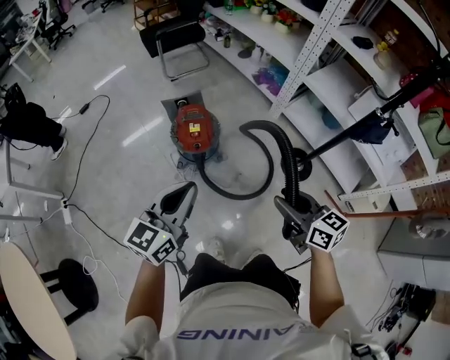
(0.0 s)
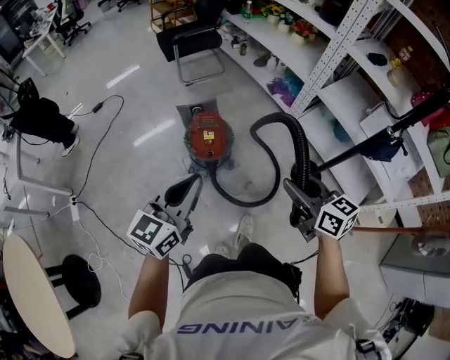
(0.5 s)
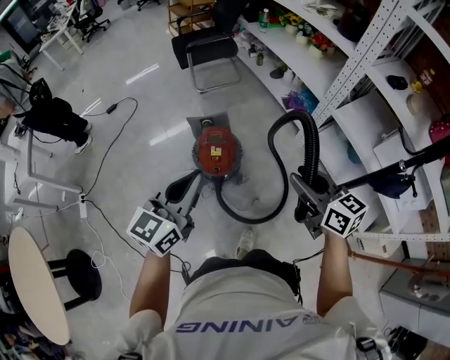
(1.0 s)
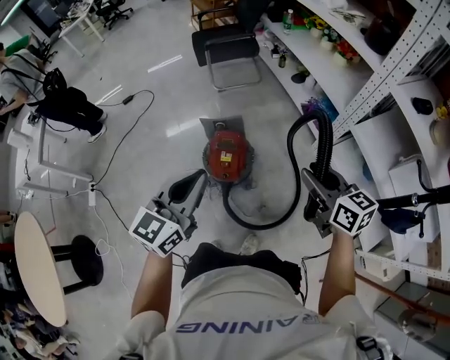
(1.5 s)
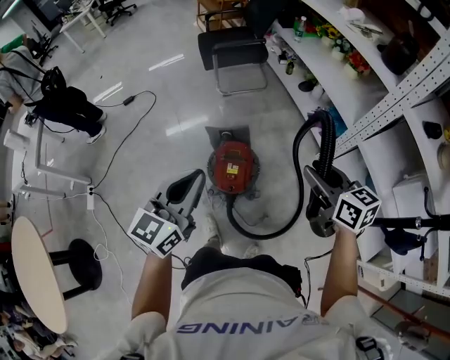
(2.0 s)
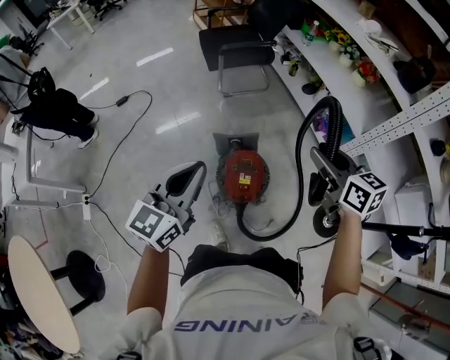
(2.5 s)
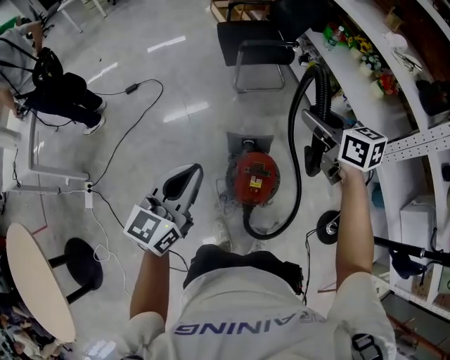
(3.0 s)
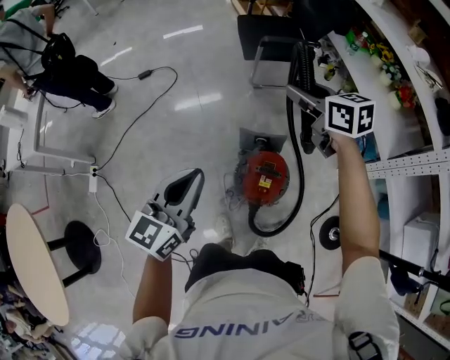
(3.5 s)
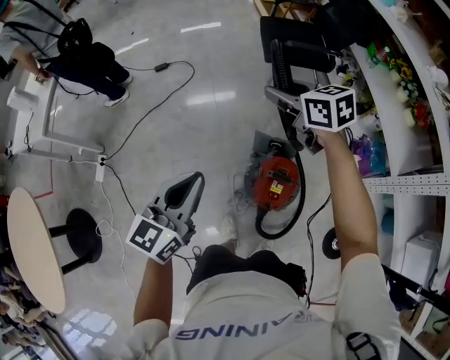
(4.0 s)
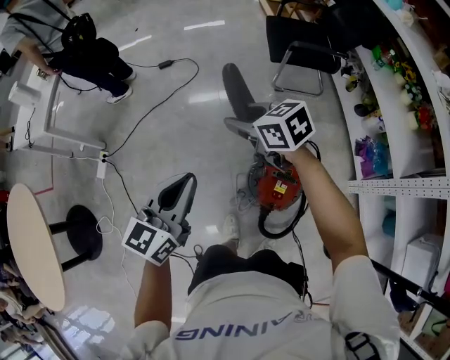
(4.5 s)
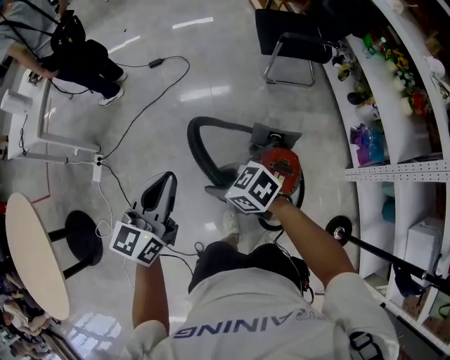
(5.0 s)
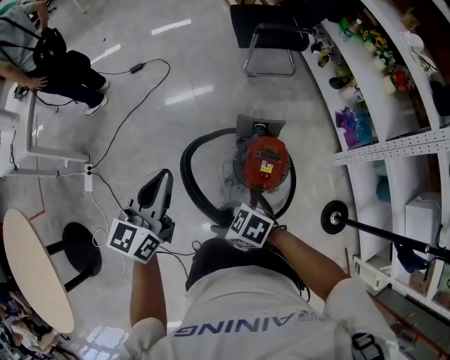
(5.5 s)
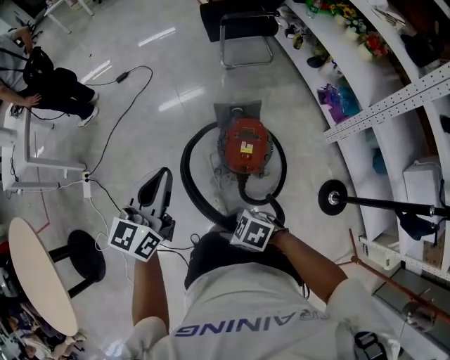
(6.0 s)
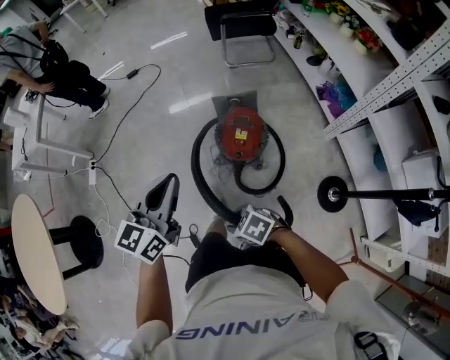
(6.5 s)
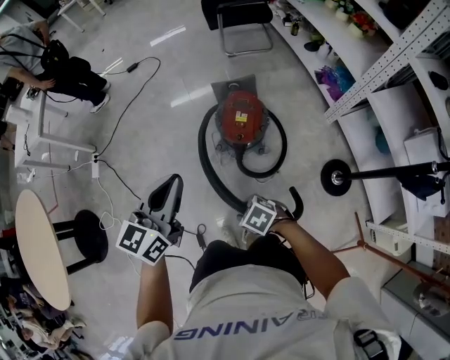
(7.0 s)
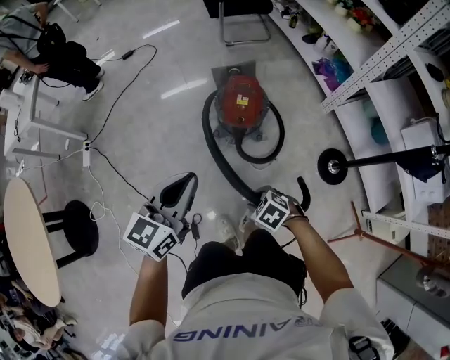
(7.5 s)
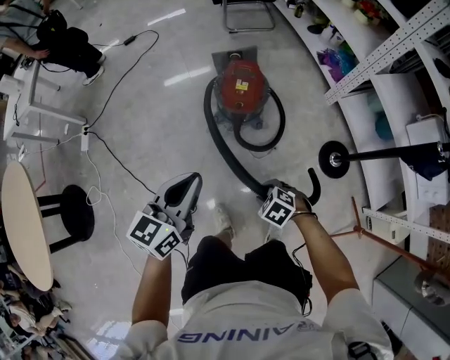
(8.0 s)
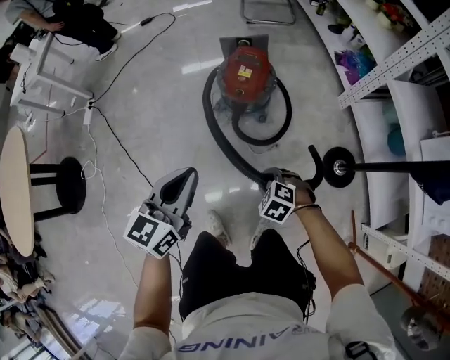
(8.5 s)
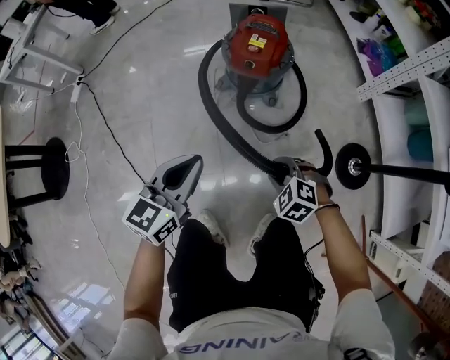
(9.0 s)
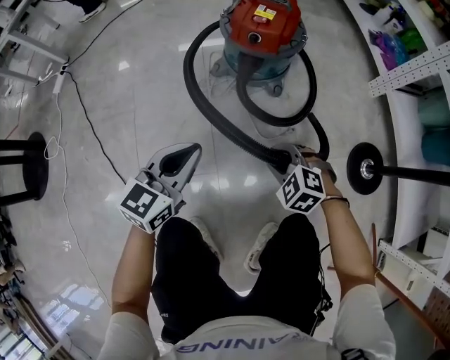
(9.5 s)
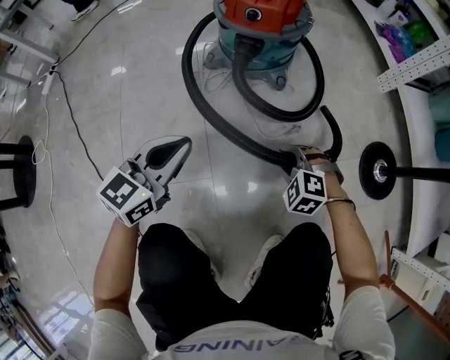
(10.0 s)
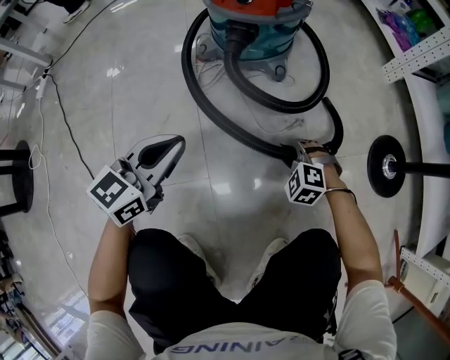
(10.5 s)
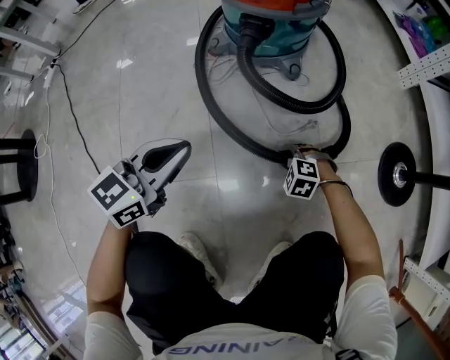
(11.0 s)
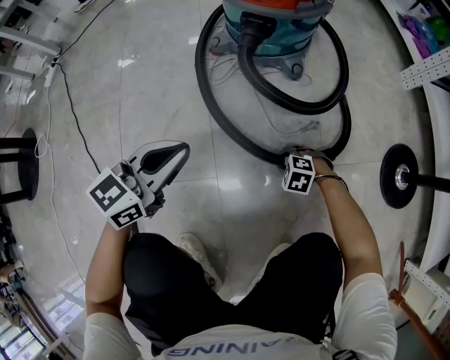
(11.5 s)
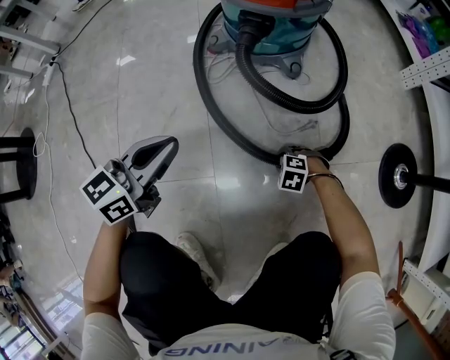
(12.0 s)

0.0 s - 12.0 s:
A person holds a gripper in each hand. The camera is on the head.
0.0 s - 2.0 s: Both grippers travel together forward, roughly 35 cm.
2.0 s - 4.0 s: The left gripper goes about 30 cm to the left and forward. Meanwhile the right gripper goes roughly 50 cm to the left and forward, and rotates about 30 degrees.
4.0 s - 6.0 s: The right gripper is displaced backward, to the left and downward by about 60 cm, and turns by about 40 degrees, while the left gripper goes about 15 cm backward.
6.0 s - 8.0 s: The right gripper travels backward and downward by some 30 cm, and changes its angle by some 20 degrees. Meanwhile the left gripper goes about 35 cm backward.
8.0 s - 10.0 s: Both grippers travel together downward, about 50 cm. The right gripper turns by about 40 degrees.
10.0 s - 12.0 s: The left gripper goes about 5 cm downward; the right gripper shifts some 25 cm downward, and changes its angle by about 20 degrees.

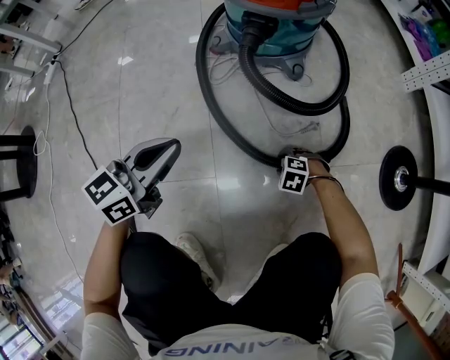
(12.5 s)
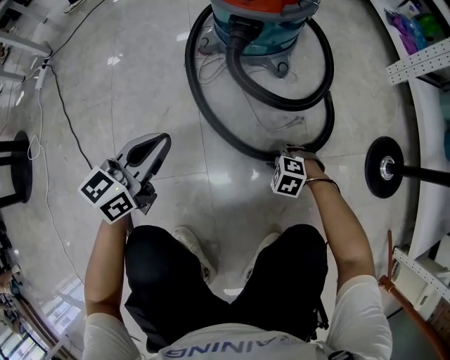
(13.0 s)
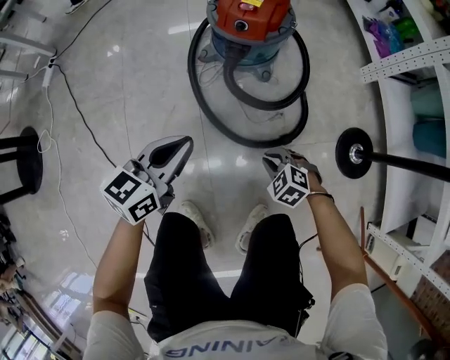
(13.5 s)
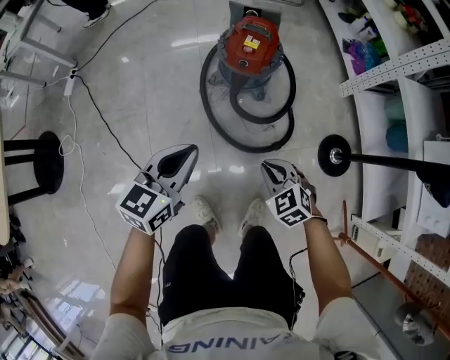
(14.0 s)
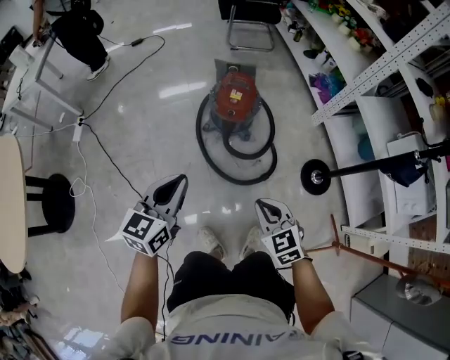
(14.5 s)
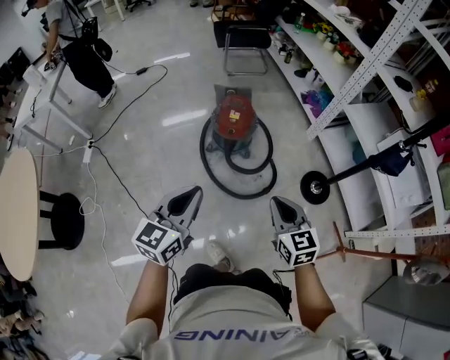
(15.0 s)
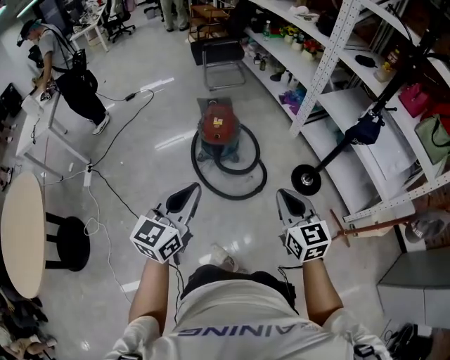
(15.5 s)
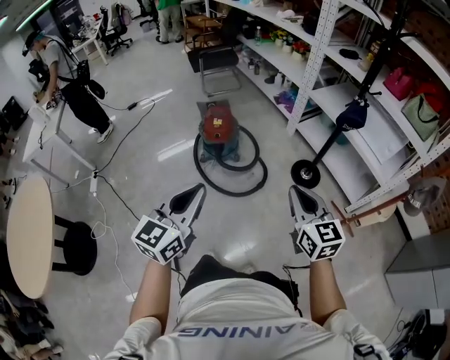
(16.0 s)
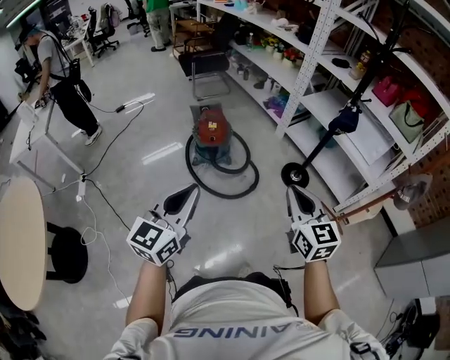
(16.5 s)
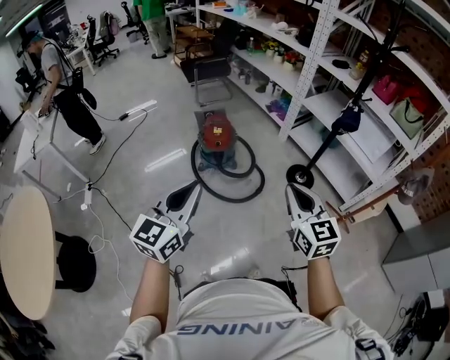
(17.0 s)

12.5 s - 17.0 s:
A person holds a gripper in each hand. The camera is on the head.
12.5 s - 14.5 s: Both grippers travel together upward, about 70 cm. The right gripper points its fingers roughly 40 degrees further upward, and closes up.
14.5 s - 17.0 s: The left gripper moves backward and upward, roughly 35 cm, and changes its angle by roughly 30 degrees. The right gripper heads upward and backward, covering about 40 cm, and swivels roughly 40 degrees.

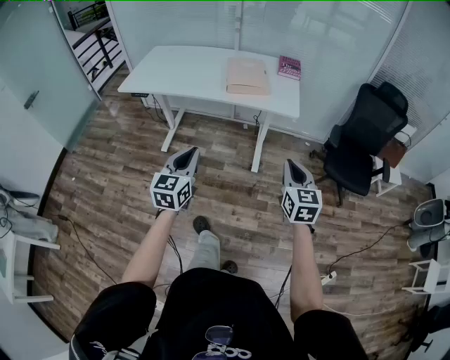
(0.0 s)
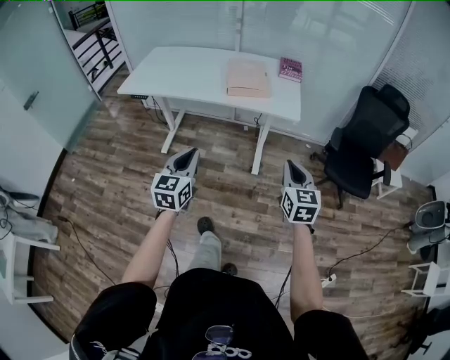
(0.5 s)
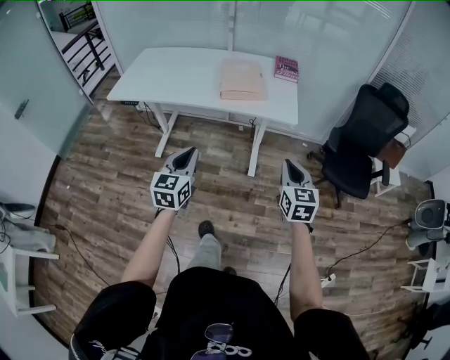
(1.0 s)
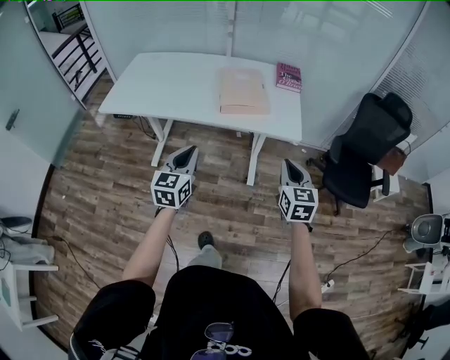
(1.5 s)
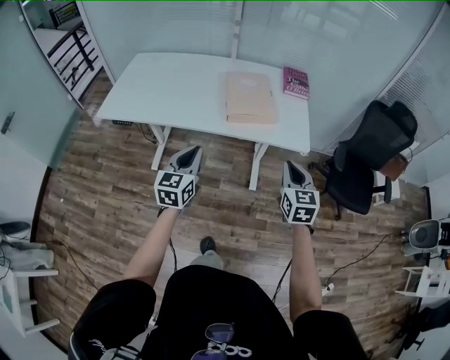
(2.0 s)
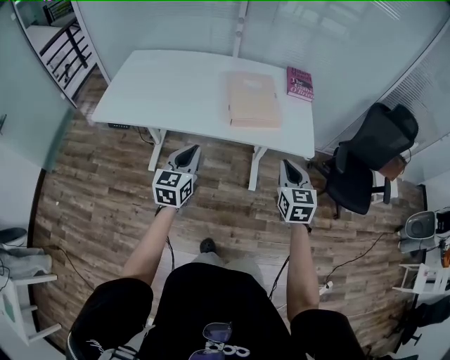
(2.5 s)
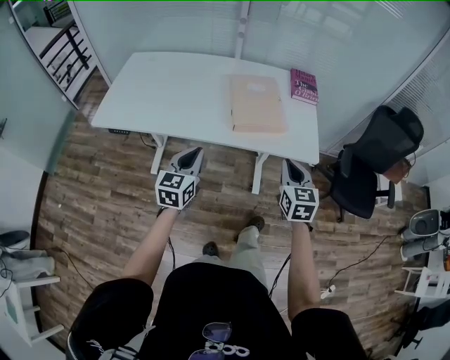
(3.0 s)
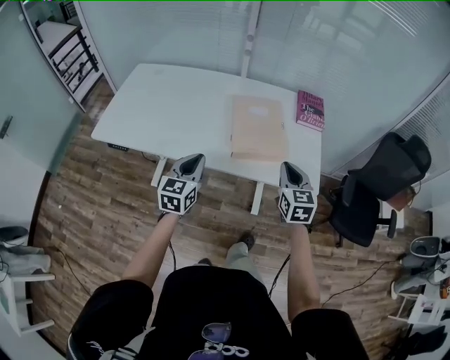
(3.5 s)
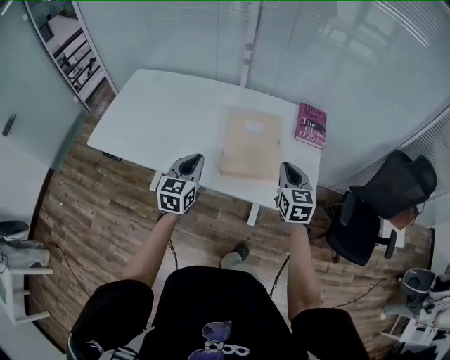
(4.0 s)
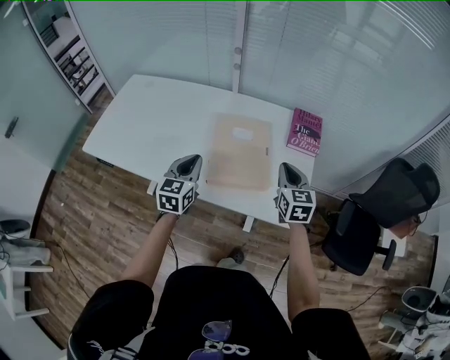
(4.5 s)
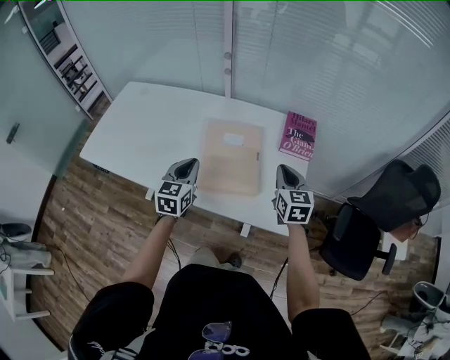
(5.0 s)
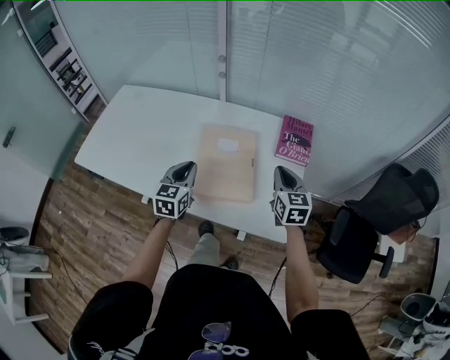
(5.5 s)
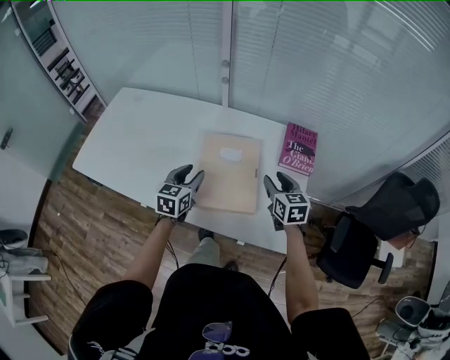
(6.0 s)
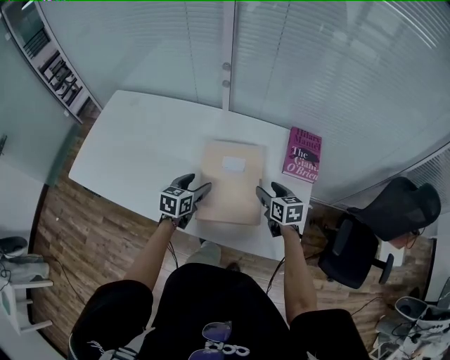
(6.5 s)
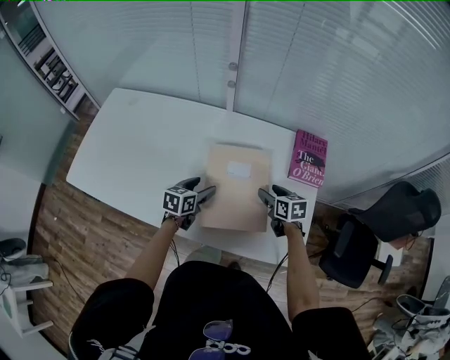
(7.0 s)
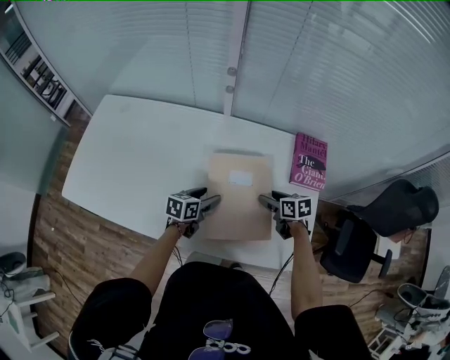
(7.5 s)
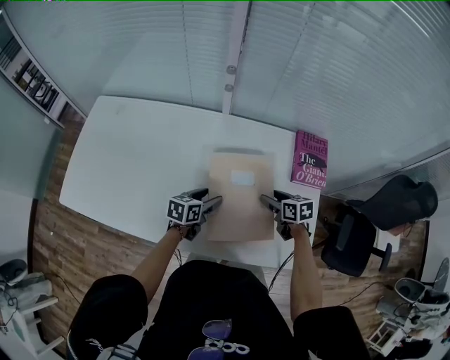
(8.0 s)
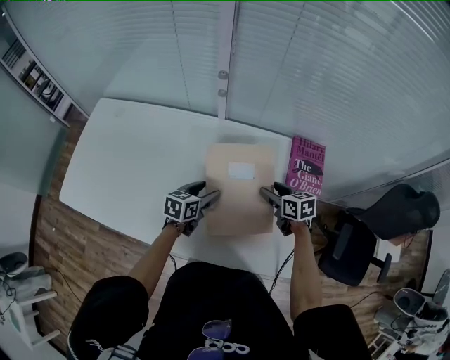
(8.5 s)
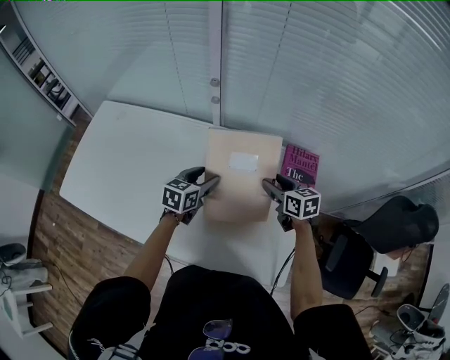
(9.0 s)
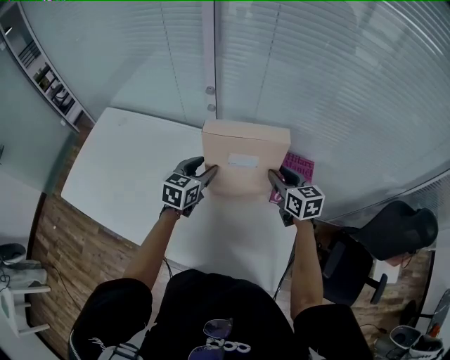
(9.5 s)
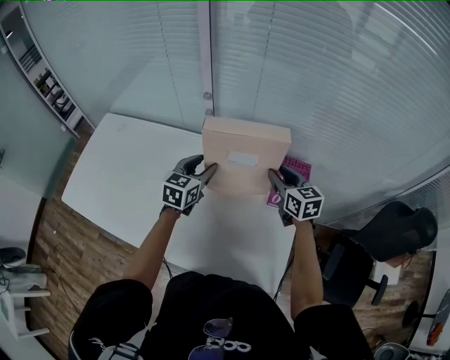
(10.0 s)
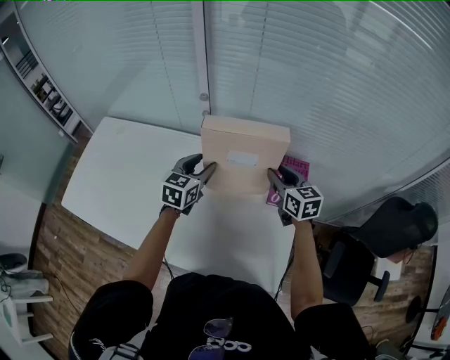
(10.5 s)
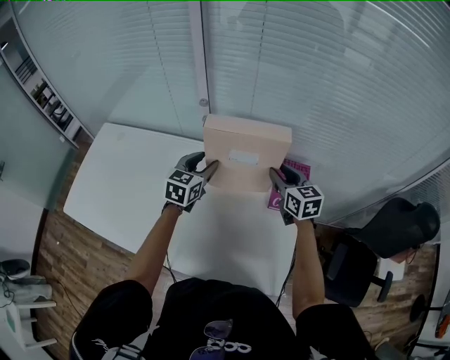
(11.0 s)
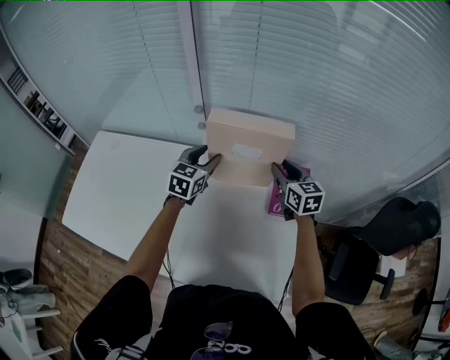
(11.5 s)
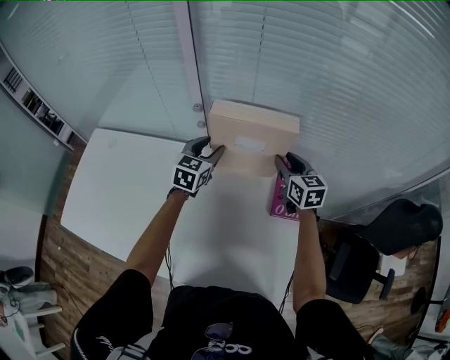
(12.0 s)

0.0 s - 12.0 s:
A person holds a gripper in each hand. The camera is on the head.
0.0 s - 2.0 s: Both grippers travel together forward, approximately 25 cm.
2.0 s - 4.0 s: Both grippers travel together forward, roughly 30 cm.
4.0 s - 6.0 s: Both grippers move forward, to the right and downward, approximately 15 cm. The left gripper opens its fingers; the right gripper opens up.
6.0 s - 8.0 s: The left gripper shifts some 15 cm downward and forward, changes its angle by some 30 degrees, and opens its fingers. The right gripper heads downward, forward and to the left, covering approximately 15 cm, and rotates some 30 degrees.
8.0 s - 10.0 s: The grippers both shift upward, forward and to the right by roughly 25 cm. The right gripper changes its angle by roughly 30 degrees, and closes. The left gripper rotates approximately 30 degrees.
10.0 s - 12.0 s: The two grippers go approximately 10 cm forward.
